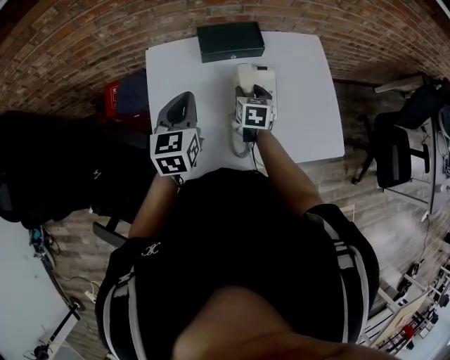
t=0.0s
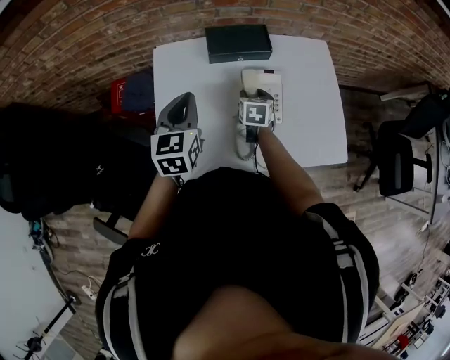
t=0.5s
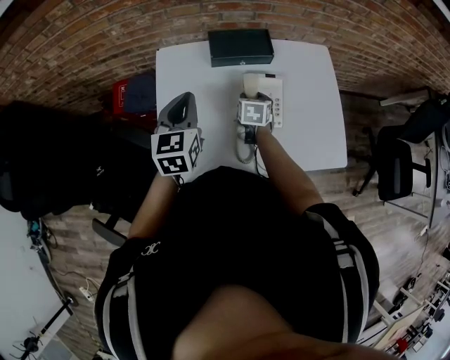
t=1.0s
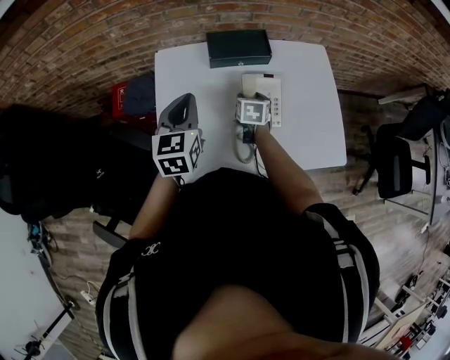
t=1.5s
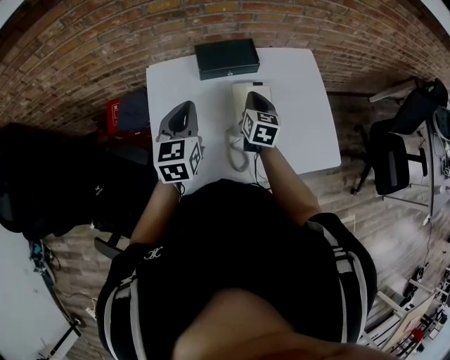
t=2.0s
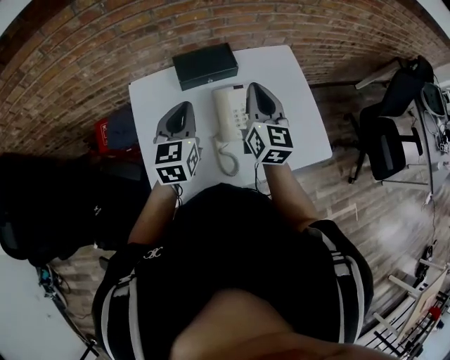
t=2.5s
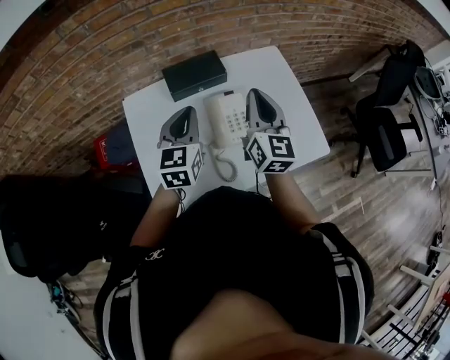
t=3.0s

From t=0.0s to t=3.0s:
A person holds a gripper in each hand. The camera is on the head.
From t=0.0s to t=1.5s: The grippers stay close to where they were, moving slightly.
From t=1.5s to t=3.0s: The left gripper moves to the right, roughly 10 cm. The right gripper is displaced upward by some 25 cm, tilts its fingers about 50 degrees upward, and closes.

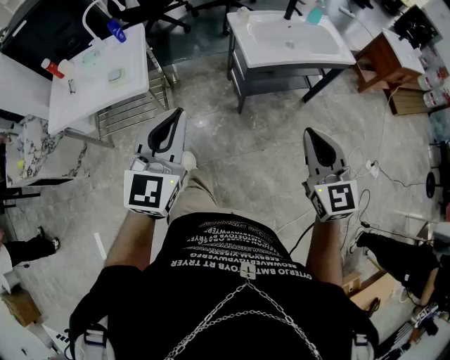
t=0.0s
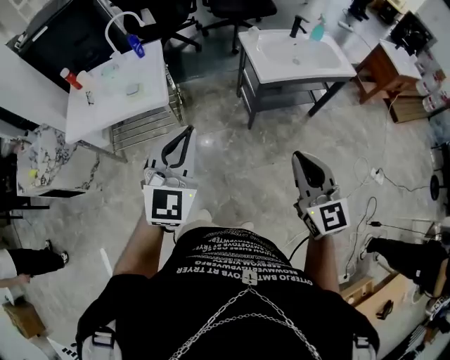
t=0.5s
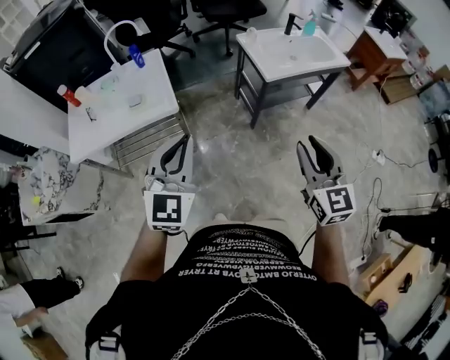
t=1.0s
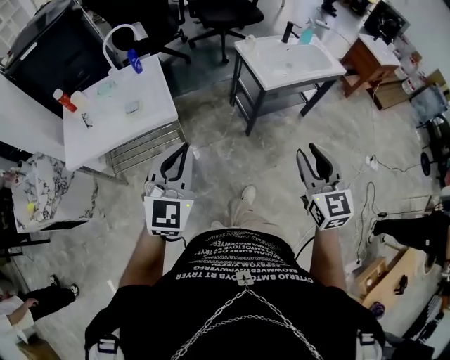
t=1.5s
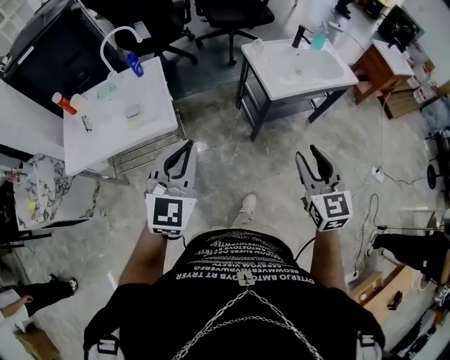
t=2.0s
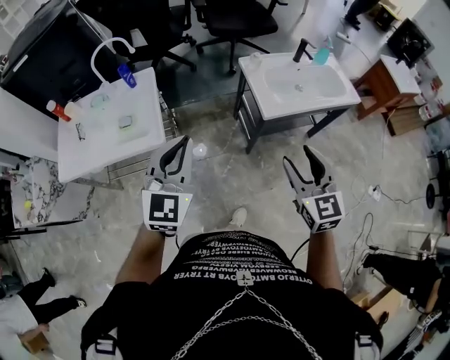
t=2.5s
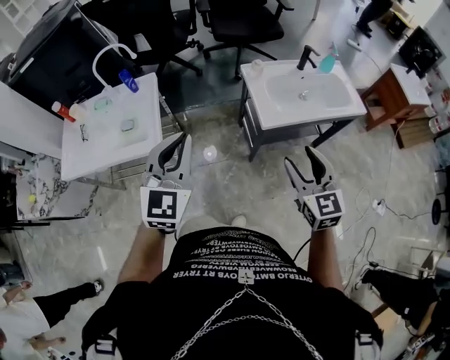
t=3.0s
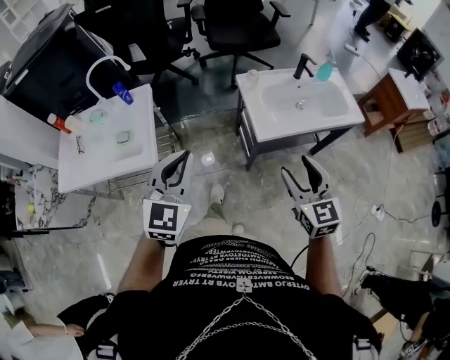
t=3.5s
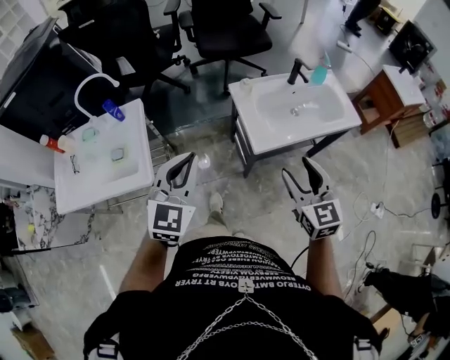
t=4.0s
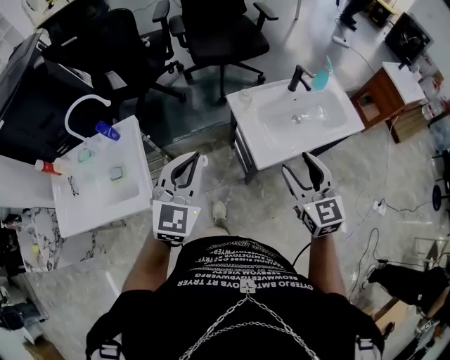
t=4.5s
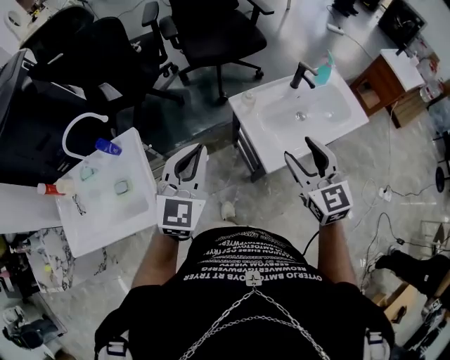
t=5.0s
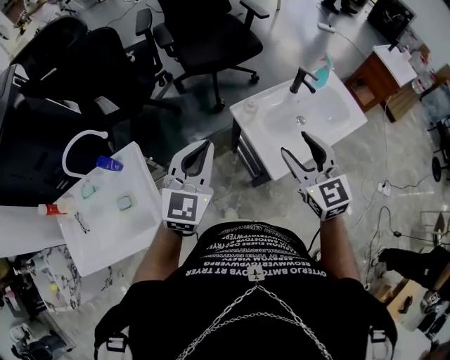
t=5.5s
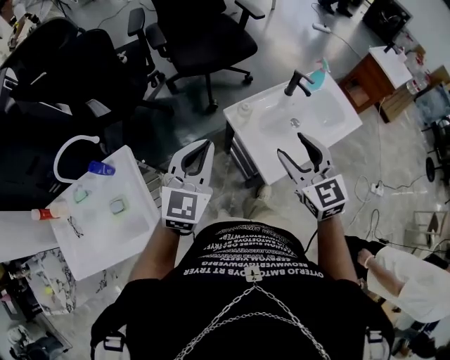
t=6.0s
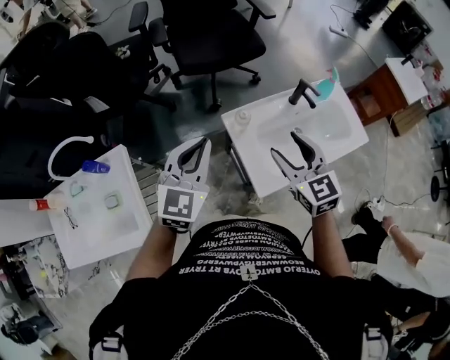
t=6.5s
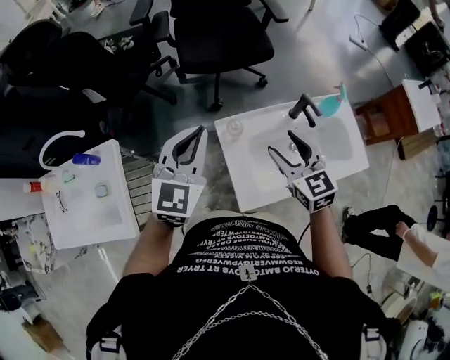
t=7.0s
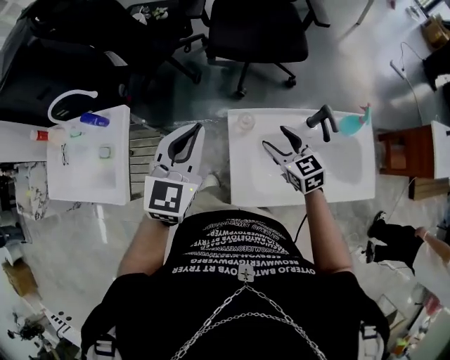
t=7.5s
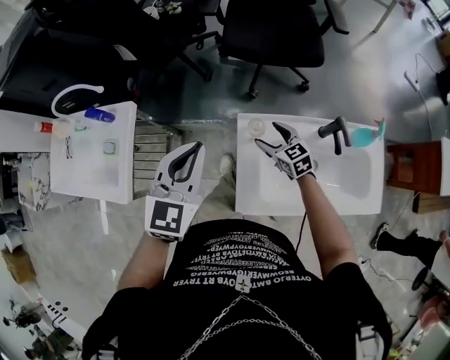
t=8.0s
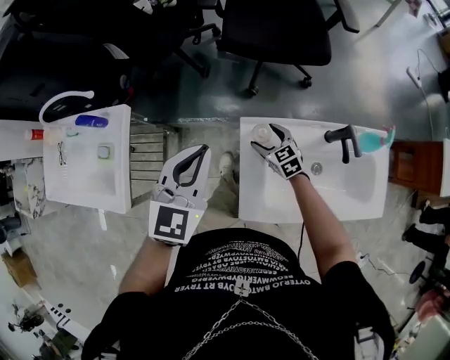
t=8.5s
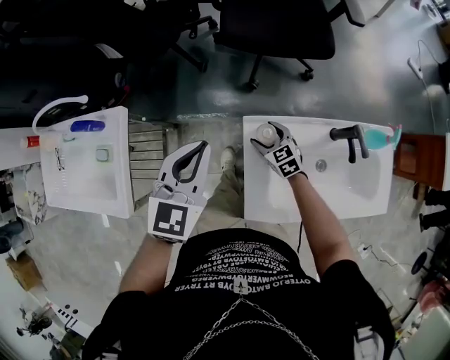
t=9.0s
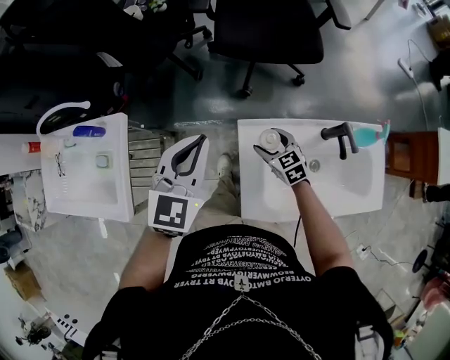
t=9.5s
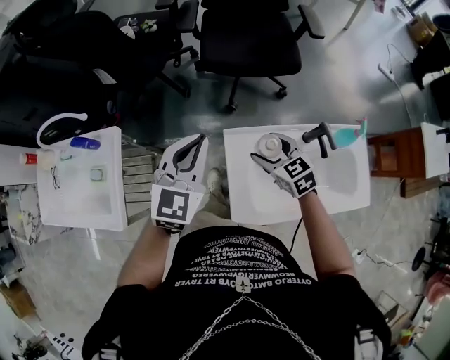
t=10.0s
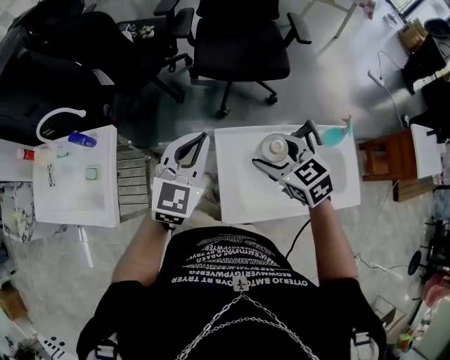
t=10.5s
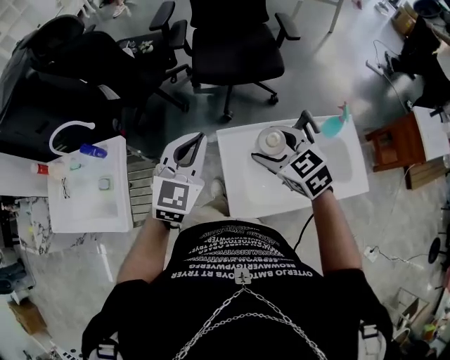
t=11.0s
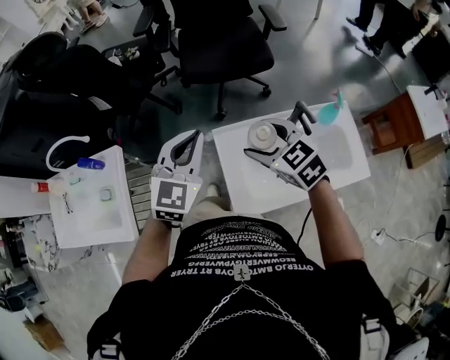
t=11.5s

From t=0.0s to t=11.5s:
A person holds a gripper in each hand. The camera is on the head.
From t=0.0s to t=2.0s: Both grippers travel together to the left, roughly 15 cm. The right gripper opens its fingers.
From t=2.0s to t=4.0s: The grippers both shift forward and to the right by some 30 cm.
From t=4.0s to t=6.0s: The two grippers go roughly 25 cm forward.
From t=6.0s to t=7.5s: The left gripper ends up roughly 20 cm from where it was, and changes its angle by roughly 30 degrees. The right gripper changes place by about 30 cm, and changes its angle by about 40 degrees.
From t=7.5s to t=9.5s: The left gripper is displaced forward and downward by about 10 cm; the right gripper heads downward and forward, covering some 15 cm.
From t=9.5s to t=11.5s: The right gripper travels upward by roughly 30 cm; the left gripper is displaced upward, to the right and backward by some 10 cm.

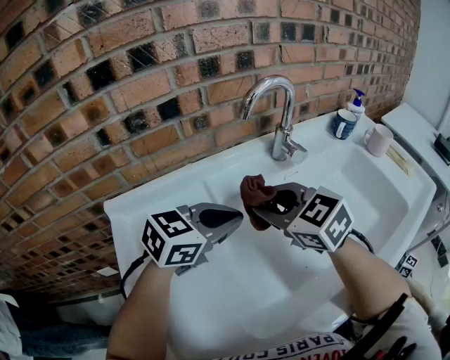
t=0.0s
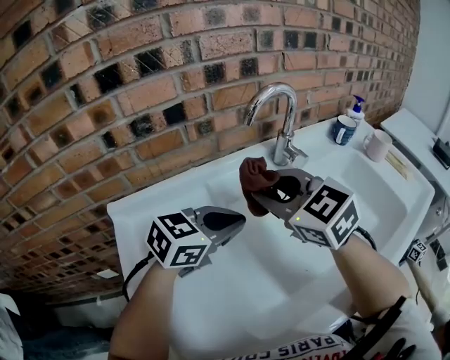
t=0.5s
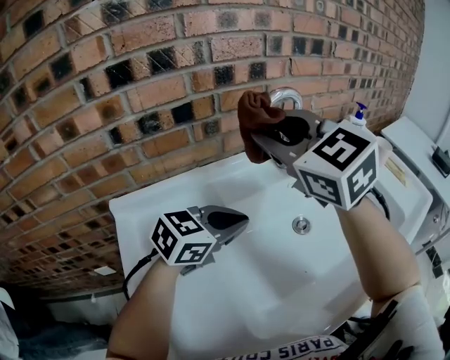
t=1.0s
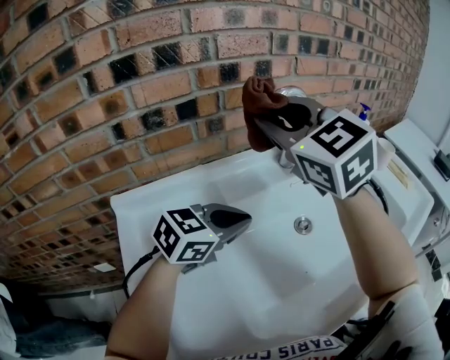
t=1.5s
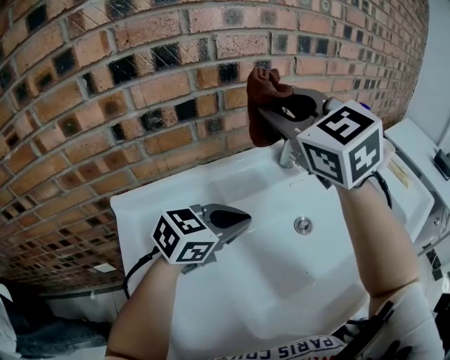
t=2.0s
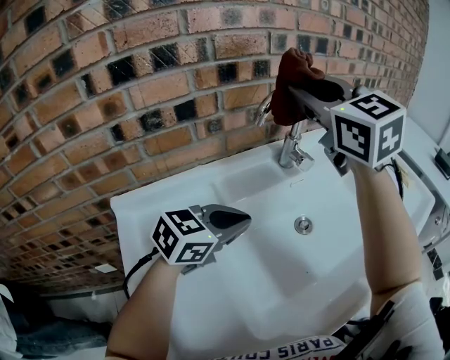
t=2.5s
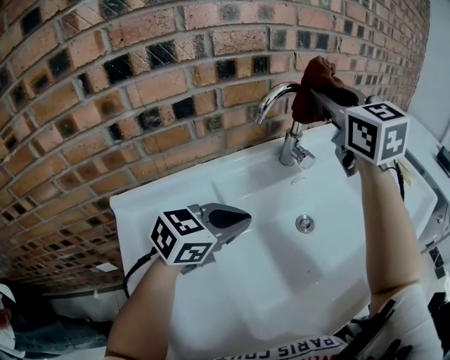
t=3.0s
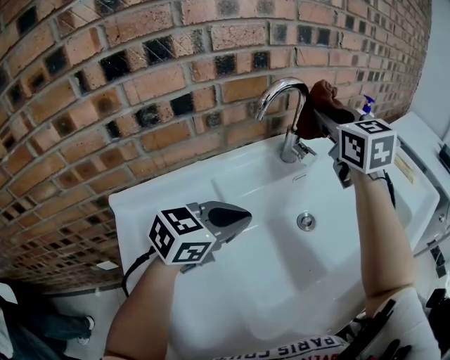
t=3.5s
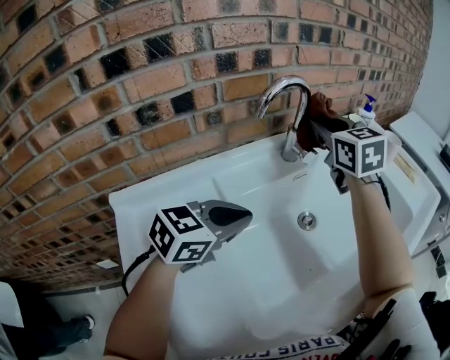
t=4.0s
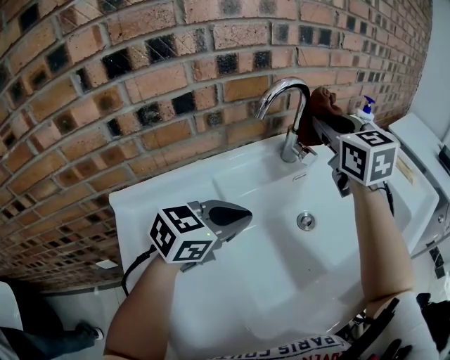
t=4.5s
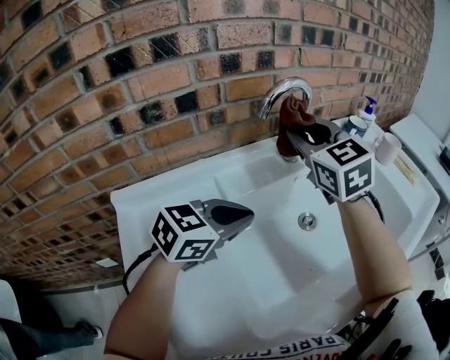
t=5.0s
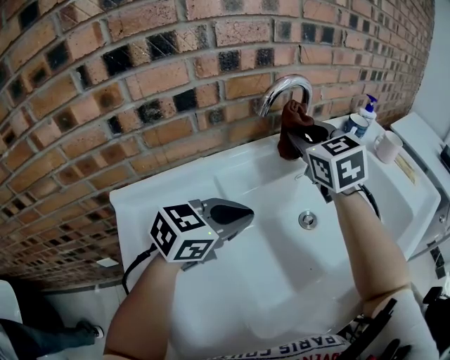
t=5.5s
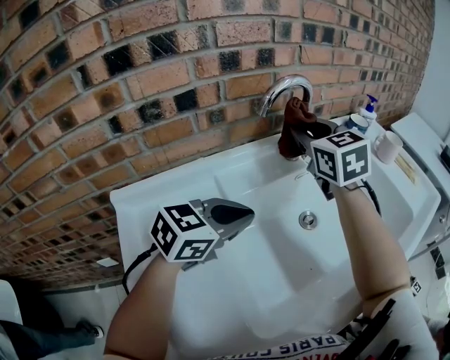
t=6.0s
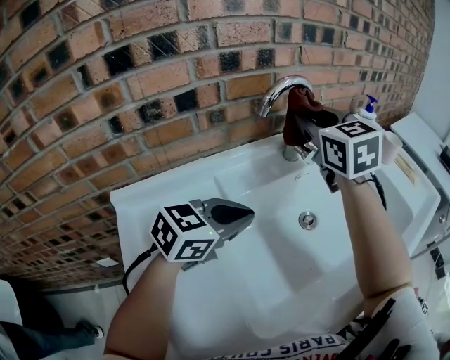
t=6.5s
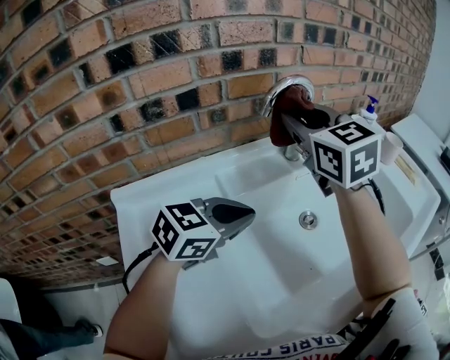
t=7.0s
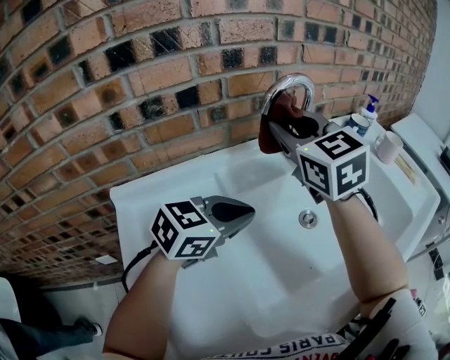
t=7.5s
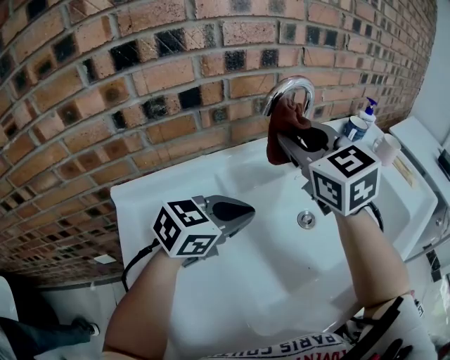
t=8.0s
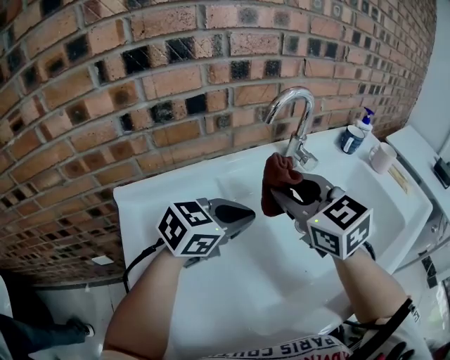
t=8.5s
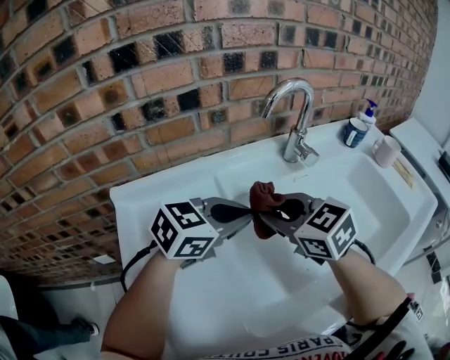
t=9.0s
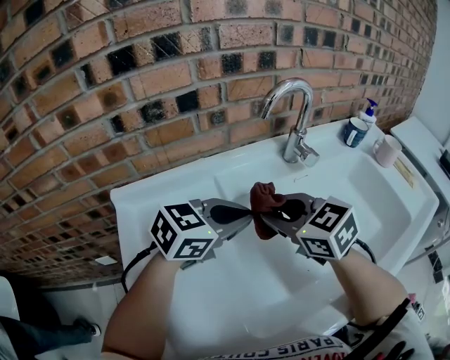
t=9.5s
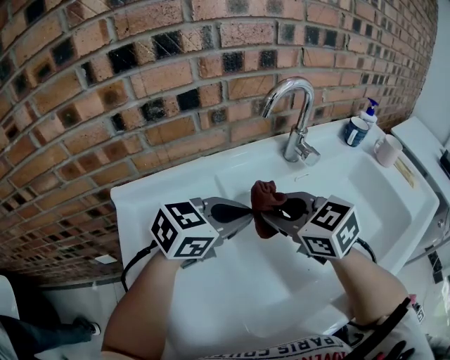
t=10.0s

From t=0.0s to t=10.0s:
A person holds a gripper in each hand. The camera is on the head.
From t=0.0s to t=2.0s: The right gripper heads upward, covering some 20 cm, and rotates roughly 30 degrees.
From t=2.0s to t=4.0s: The right gripper moves forward, to the right and downward, some 20 cm, and changes its angle by some 30 degrees.
From t=4.0s to t=6.0s: The right gripper moves approximately 5 cm.
From t=6.0s to t=8.0s: The right gripper shifts approximately 10 cm backward.
From t=8.0s to t=10.0s: The right gripper shifts about 15 cm downward and backward, and changes its angle by about 30 degrees.

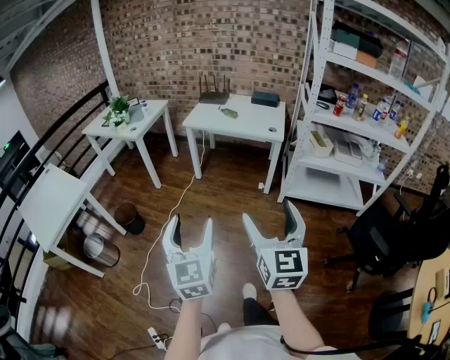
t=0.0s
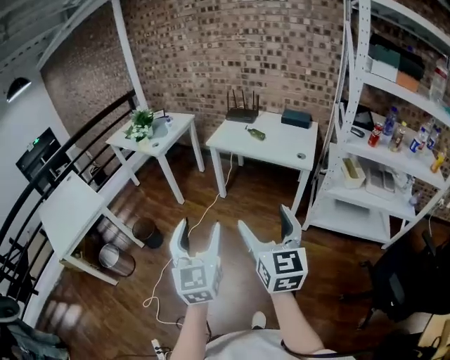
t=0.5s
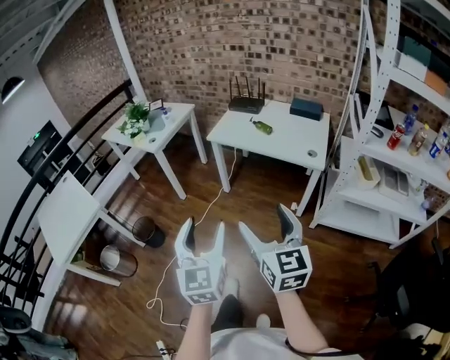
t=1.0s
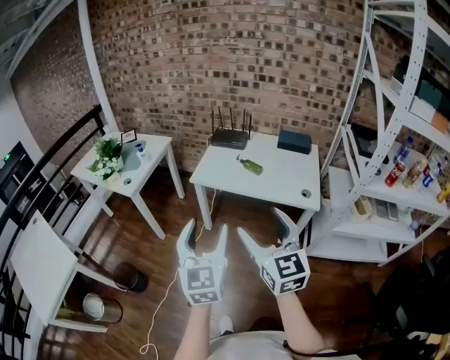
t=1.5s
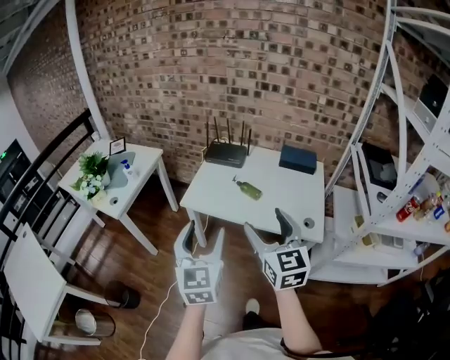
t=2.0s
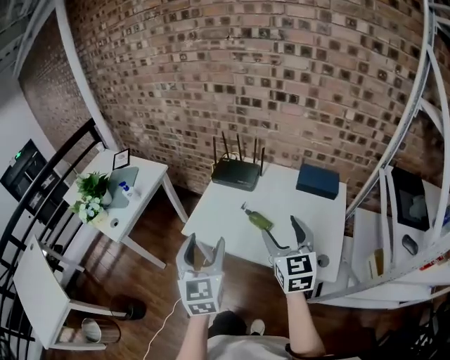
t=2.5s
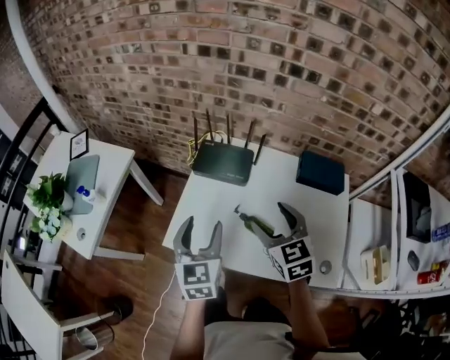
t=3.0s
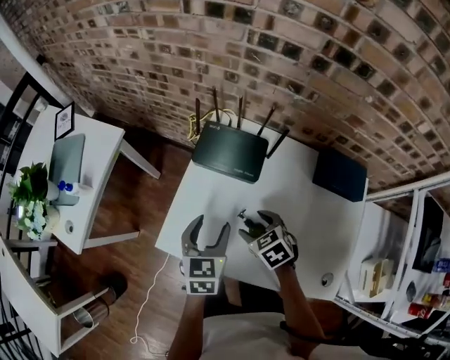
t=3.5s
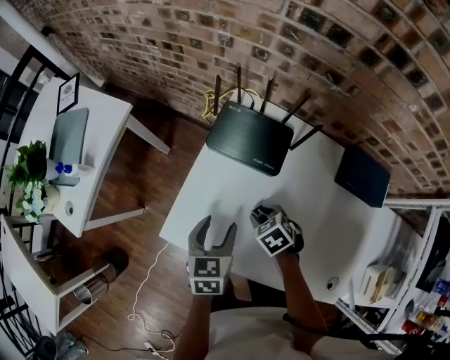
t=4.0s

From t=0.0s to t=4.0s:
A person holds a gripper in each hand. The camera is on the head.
From t=0.0s to t=2.0s: Both grippers are carried forward, some 70 cm.
From t=2.0s to t=4.0s: The pair of grippers is taken forward, some 40 cm. The grippers both shift downward by approximately 35 cm. The left gripper angles its fingers downward, by about 40 degrees. Meanwhile the right gripper angles its fingers downward, by approximately 60 degrees, and closes its fingers.
